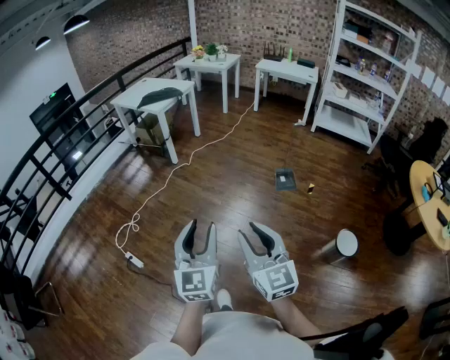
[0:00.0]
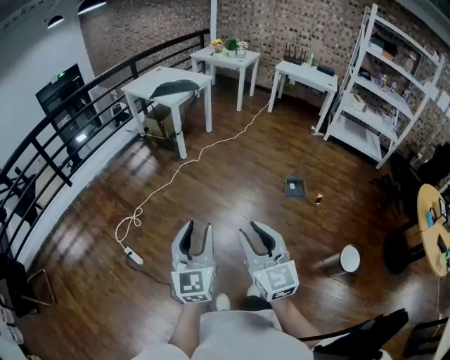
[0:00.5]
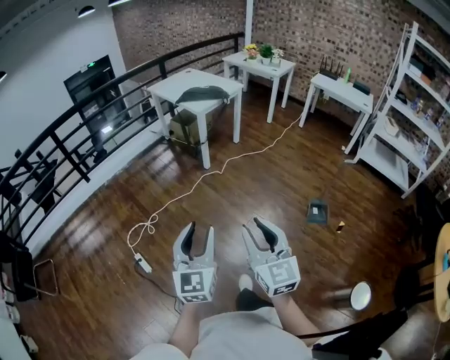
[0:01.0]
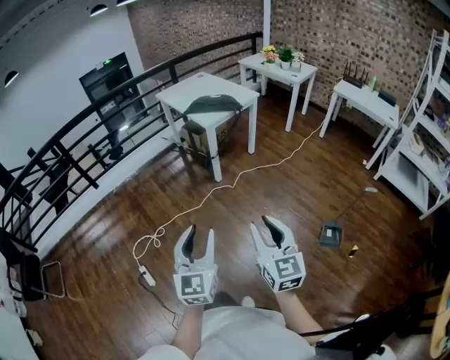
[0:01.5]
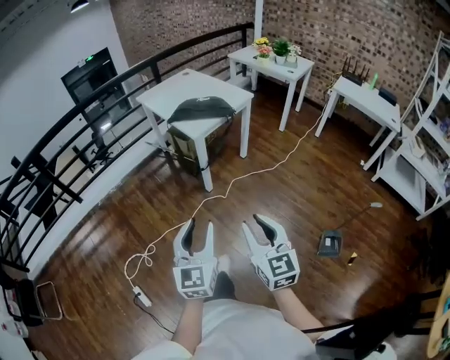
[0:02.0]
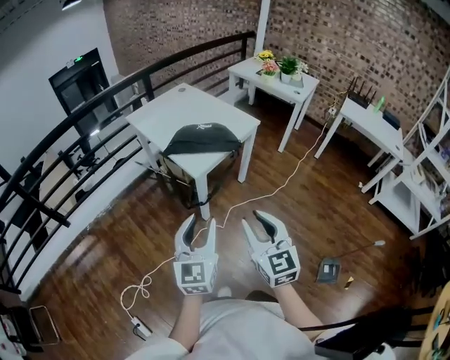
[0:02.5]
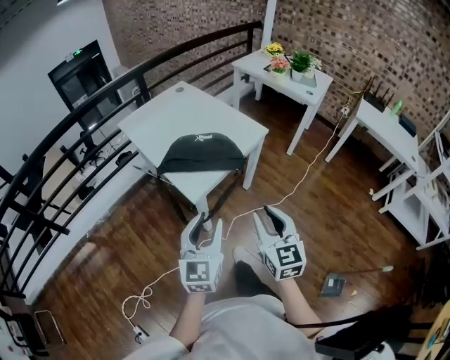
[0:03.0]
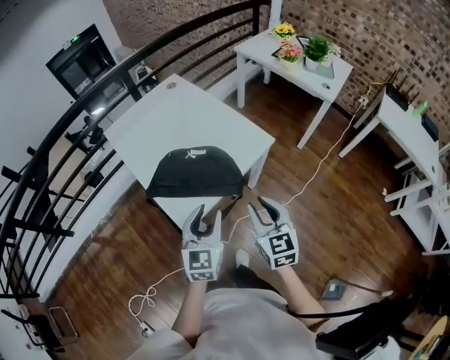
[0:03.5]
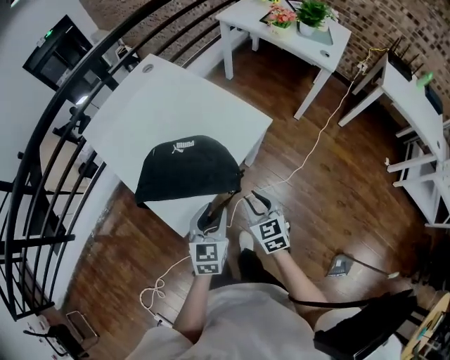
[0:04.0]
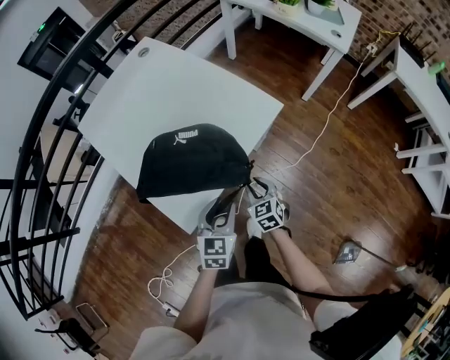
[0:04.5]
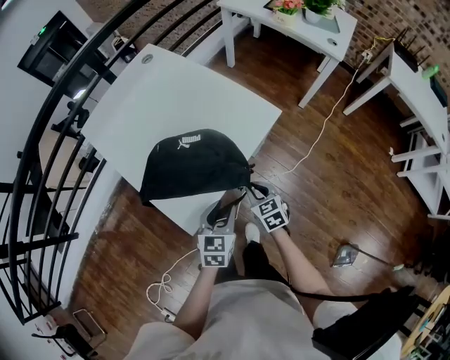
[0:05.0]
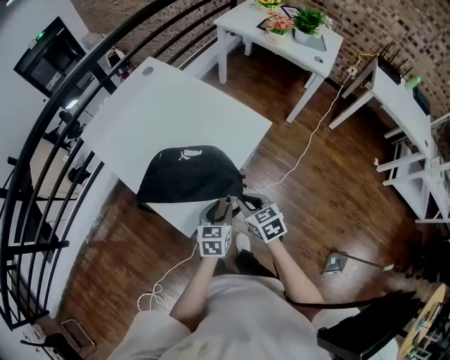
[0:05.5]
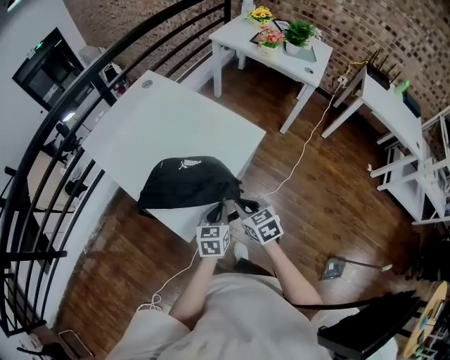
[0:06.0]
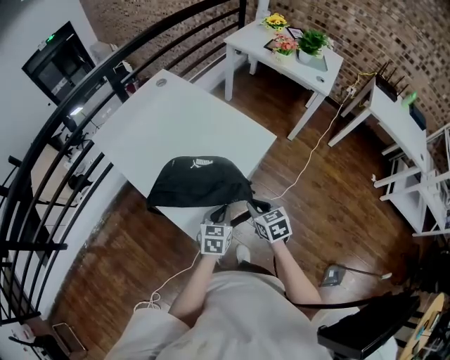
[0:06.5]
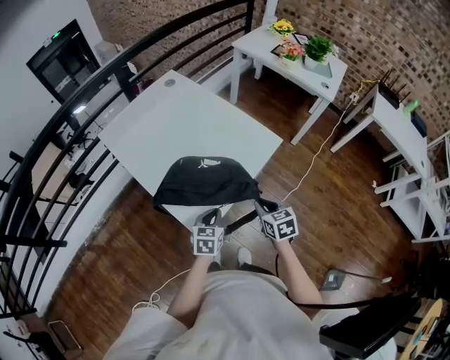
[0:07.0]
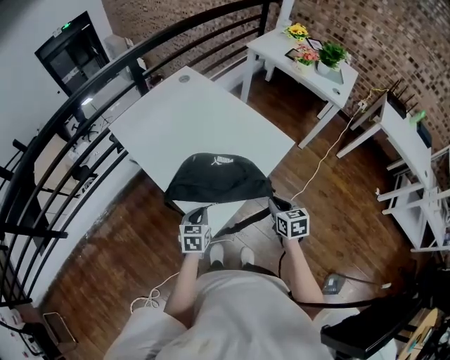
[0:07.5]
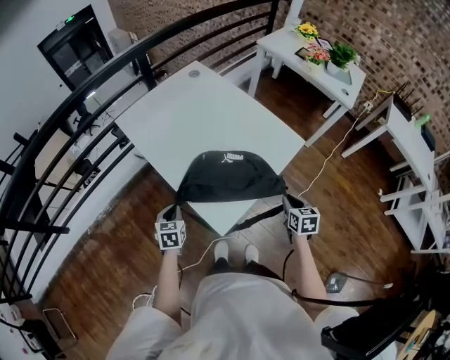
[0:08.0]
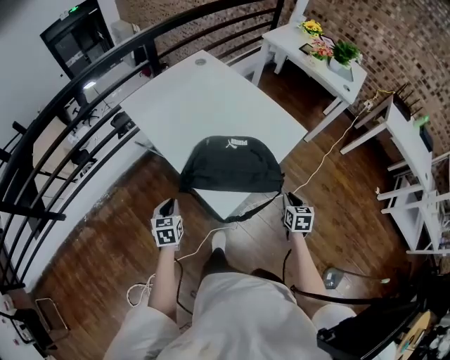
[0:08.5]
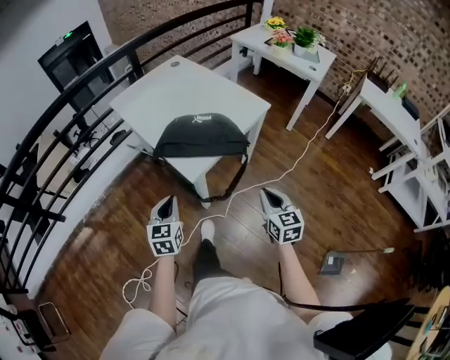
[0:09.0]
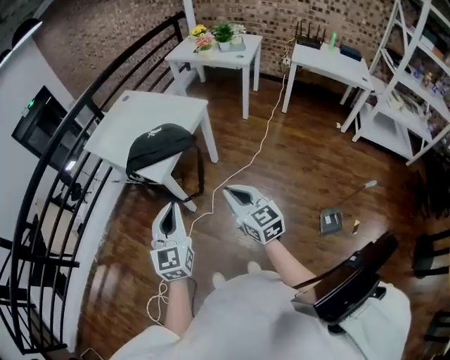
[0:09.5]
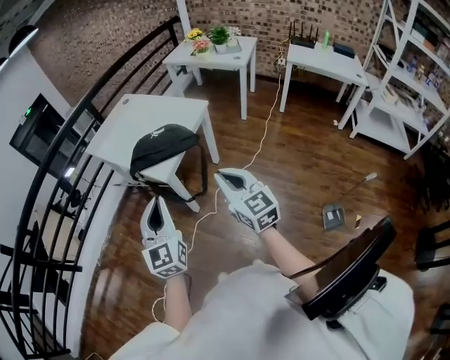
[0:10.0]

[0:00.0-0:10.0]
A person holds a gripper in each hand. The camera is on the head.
0:00.0 to 0:02.0: The pair of grippers is taken forward, approximately 70 cm.
0:02.0 to 0:04.0: Both grippers are carried forward, roughly 70 cm. The left gripper turns by roughly 30 degrees, while the right gripper changes its angle by roughly 20 degrees.
0:04.0 to 0:06.0: The right gripper goes downward and returns, about 15 cm each way. The left gripper closes its fingers.
0:06.0 to 0:08.0: The right gripper changes place by about 5 cm. The left gripper moves to the left, some 35 cm, and changes its angle by about 20 degrees.
0:08.0 to 0:10.0: Both grippers are carried backward, about 40 cm. The grippers both shift upward by roughly 30 cm. The right gripper angles its fingers upward, by roughly 40 degrees; the left gripper tilts its fingers about 50 degrees upward.

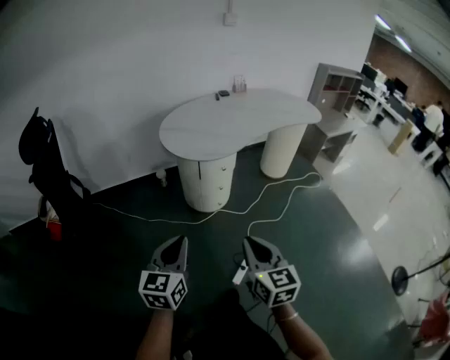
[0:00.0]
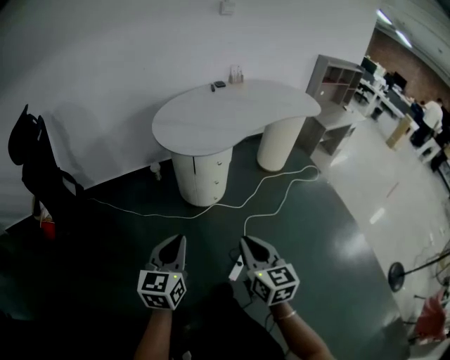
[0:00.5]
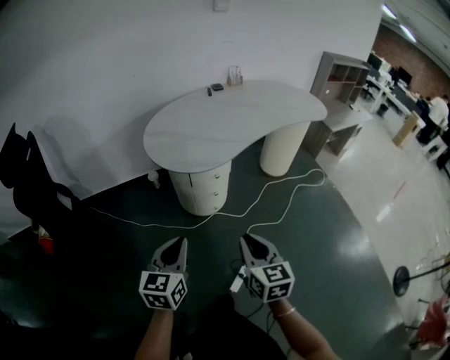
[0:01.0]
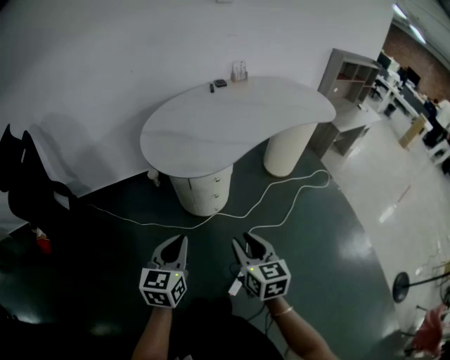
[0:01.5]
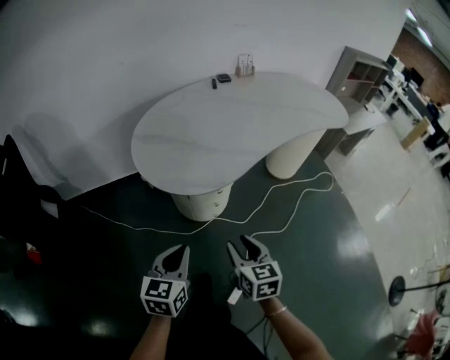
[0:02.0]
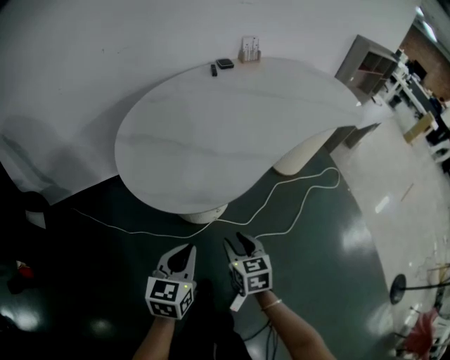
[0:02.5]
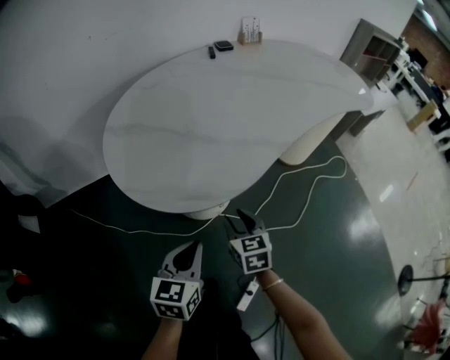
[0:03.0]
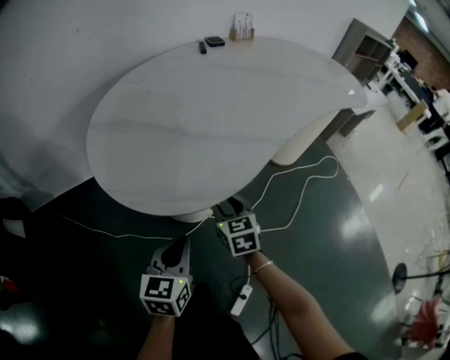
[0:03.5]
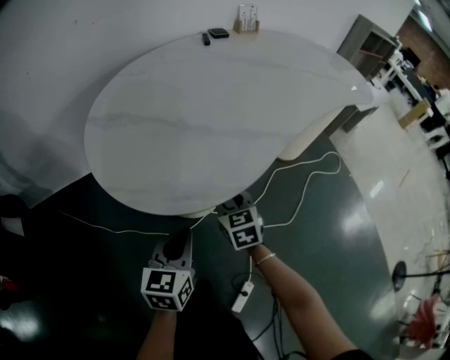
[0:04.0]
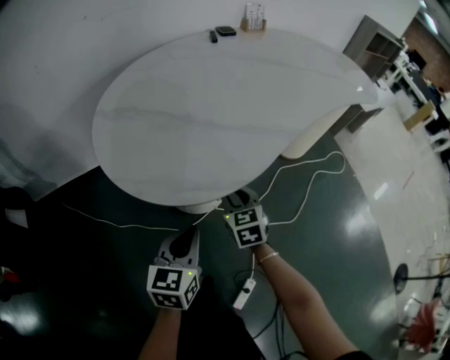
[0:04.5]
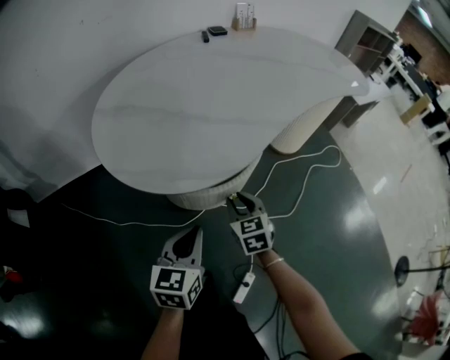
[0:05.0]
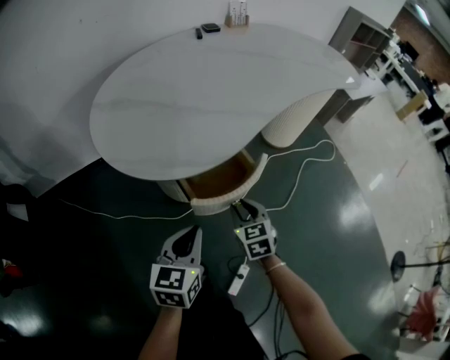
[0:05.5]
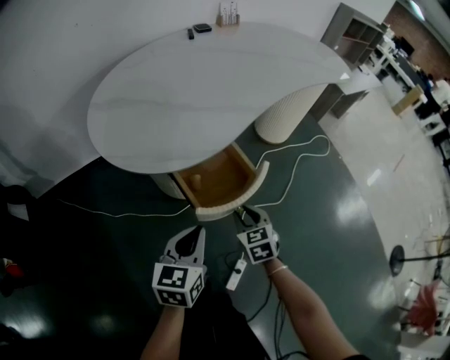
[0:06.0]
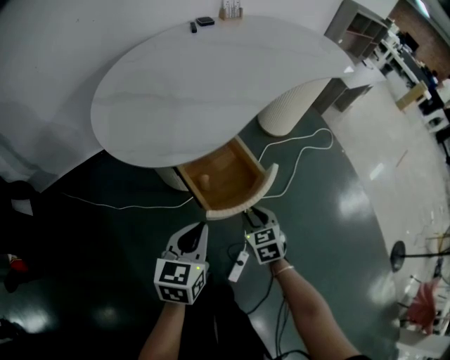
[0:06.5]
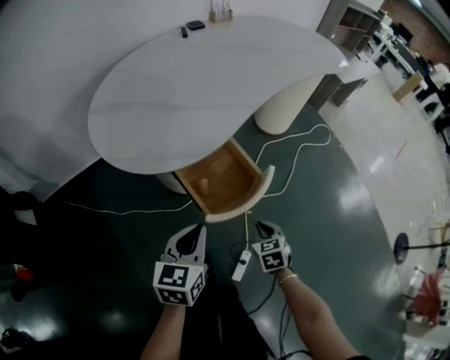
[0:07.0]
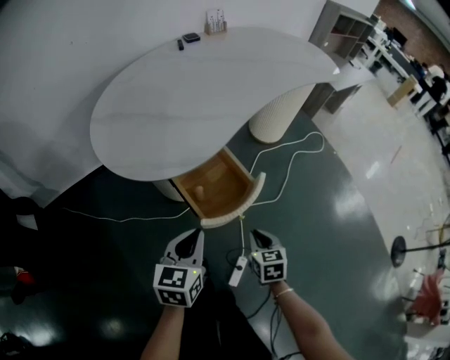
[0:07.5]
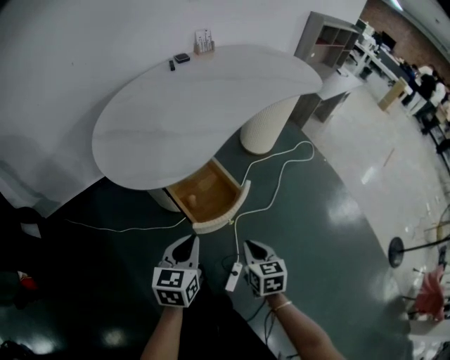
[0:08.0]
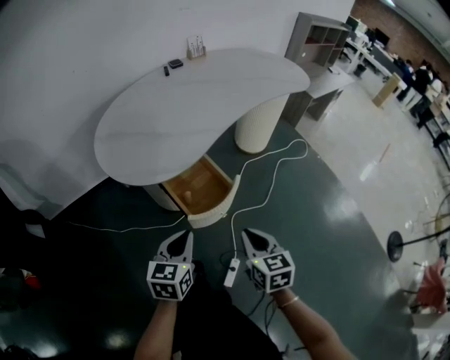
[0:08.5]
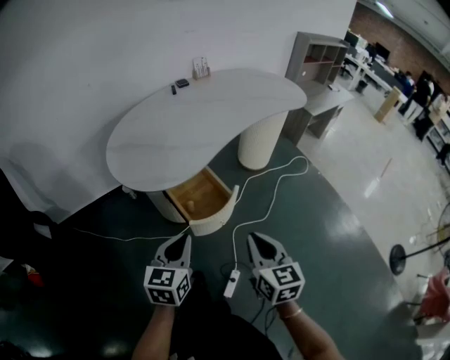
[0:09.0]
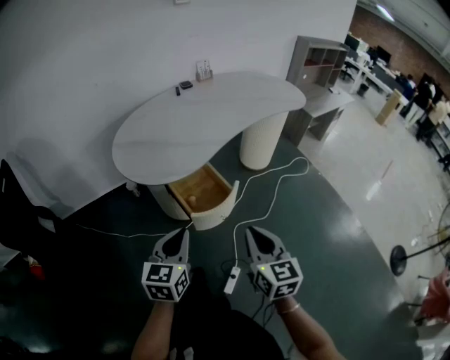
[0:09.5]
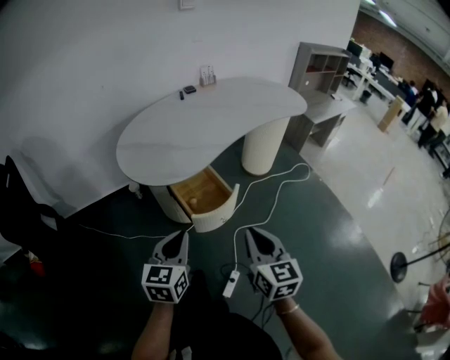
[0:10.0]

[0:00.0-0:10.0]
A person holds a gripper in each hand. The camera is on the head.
0:00.0 to 0:02.0: The two grippers go about 30 cm forward and downward. The right gripper opens its fingers.
0:02.0 to 0:04.0: The left gripper moves downward and forward, some 25 cm. Meanwhile the right gripper moves forward and downward, about 30 cm.
0:04.0 to 0:06.0: The left gripper goes roughly 15 cm backward and to the right. Meanwhile the right gripper travels backward and to the right by some 20 cm.
0:06.0 to 0:08.0: The right gripper is displaced backward, upward and to the right by about 15 cm, swivels approximately 20 degrees, and closes its fingers. Meanwhile the left gripper is displaced upward by some 5 cm.
0:08.0 to 0:10.0: The left gripper shifts about 15 cm upward and backward. Meanwhile the right gripper shifts approximately 25 cm upward, and rotates approximately 30 degrees.

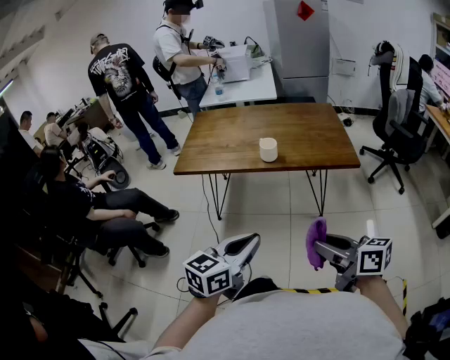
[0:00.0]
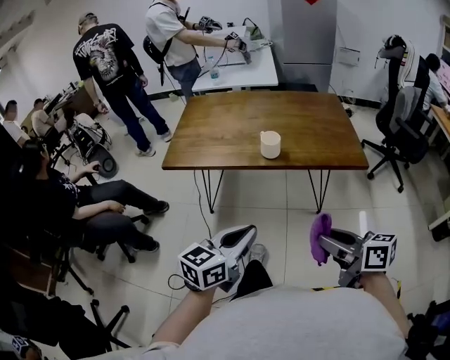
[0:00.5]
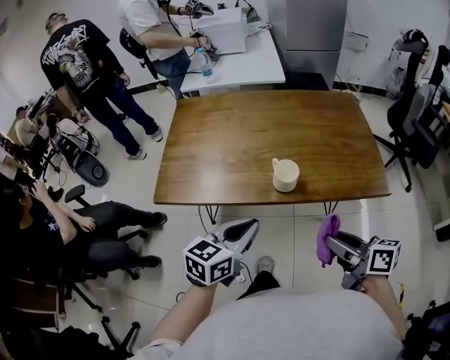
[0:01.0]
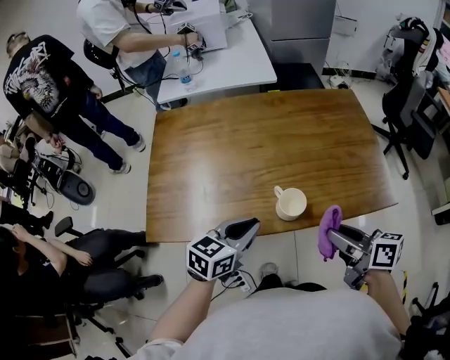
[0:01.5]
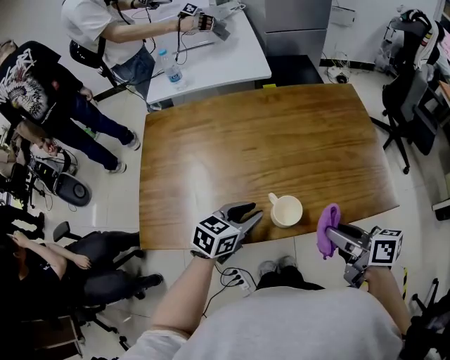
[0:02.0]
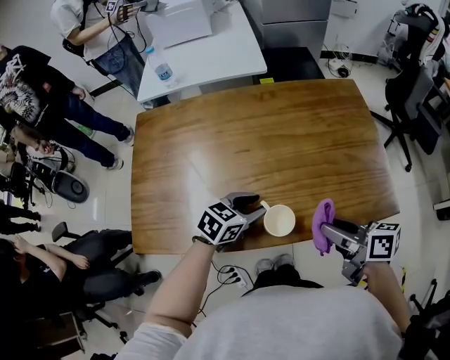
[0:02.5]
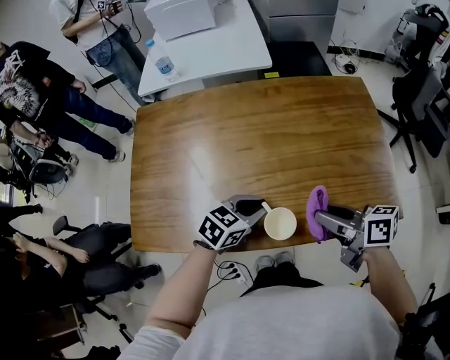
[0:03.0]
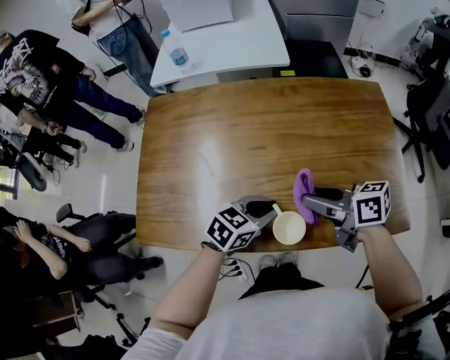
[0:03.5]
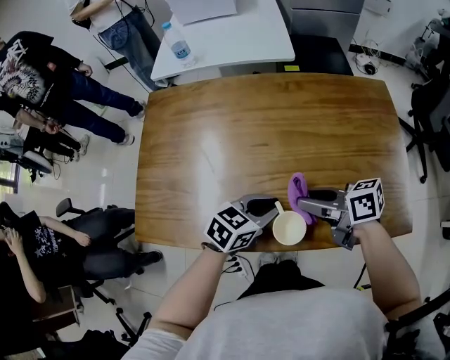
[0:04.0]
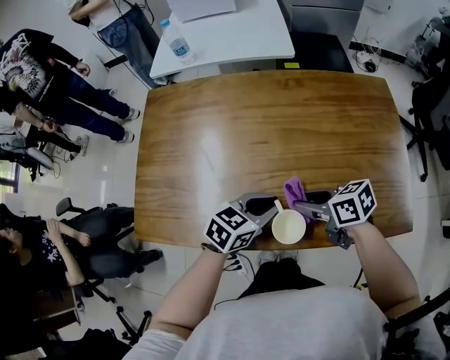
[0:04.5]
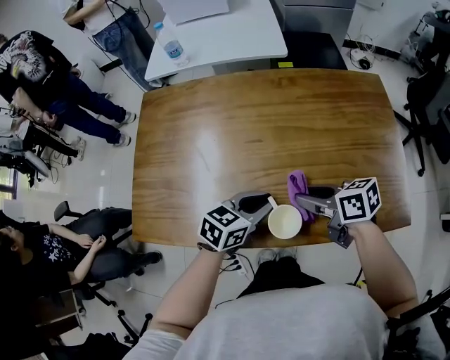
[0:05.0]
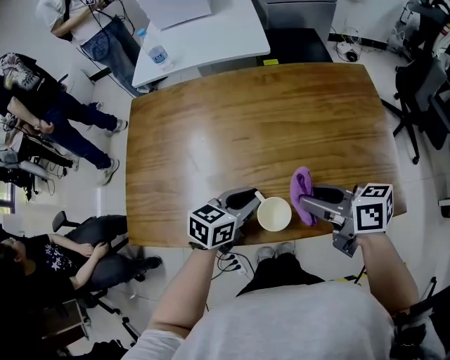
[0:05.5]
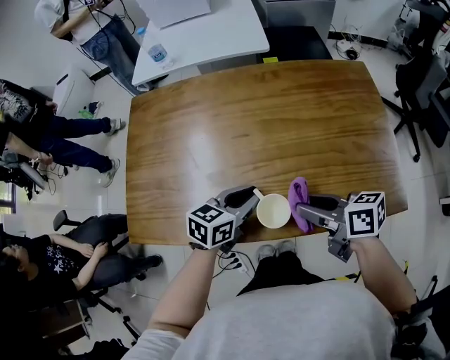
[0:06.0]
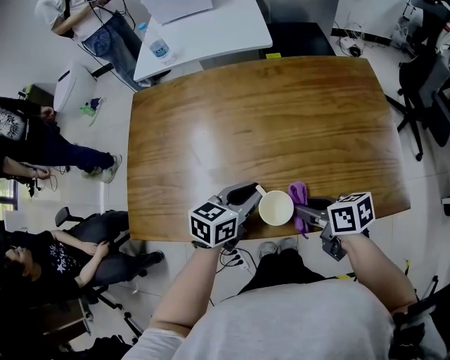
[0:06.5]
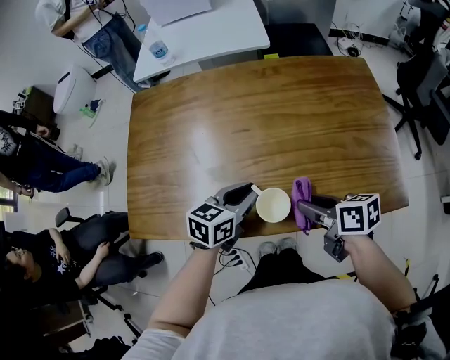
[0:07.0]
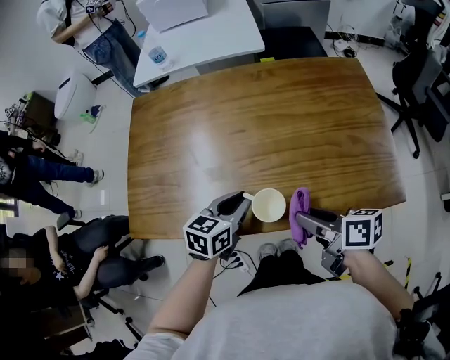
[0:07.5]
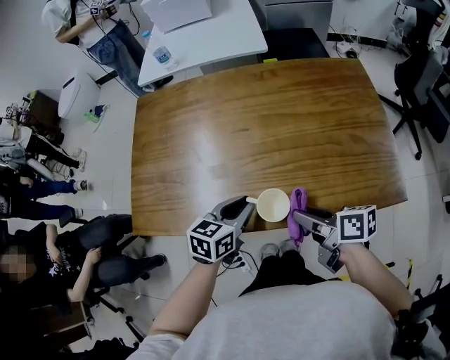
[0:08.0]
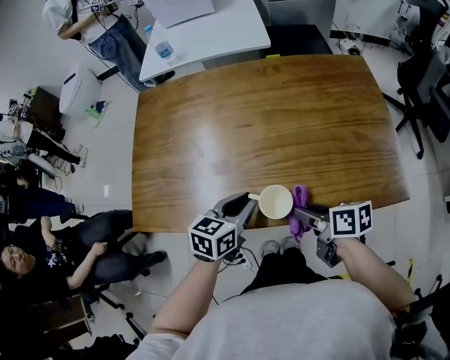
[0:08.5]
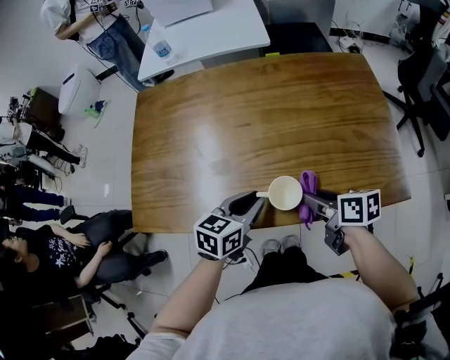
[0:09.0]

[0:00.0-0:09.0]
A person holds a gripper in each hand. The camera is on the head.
0:00.0 to 0:02.0: The pair of grippers is taken forward, about 60 cm. The right gripper changes its angle by approximately 20 degrees, while the left gripper turns by about 30 degrees, and opens up.
0:02.0 to 0:04.5: The left gripper shifts by about 10 cm, while the right gripper moves some 20 cm, and changes its angle by roughly 30 degrees.
0:04.5 to 0:07.0: The right gripper travels upward and back again, about 10 cm each way, and turns by approximately 20 degrees.
0:07.0 to 0:09.0: There are only small adjustments of the grippers.
